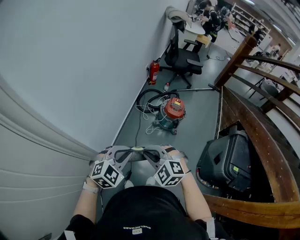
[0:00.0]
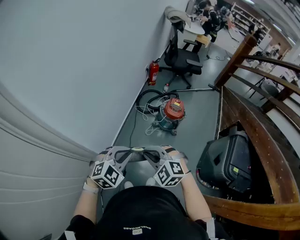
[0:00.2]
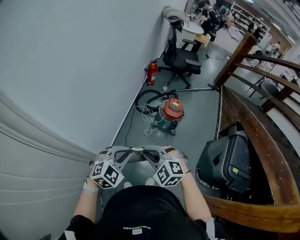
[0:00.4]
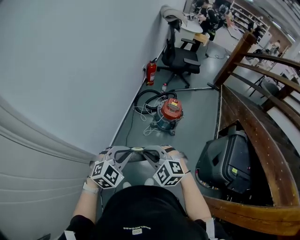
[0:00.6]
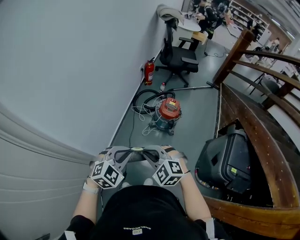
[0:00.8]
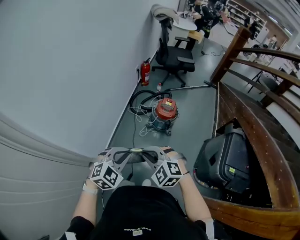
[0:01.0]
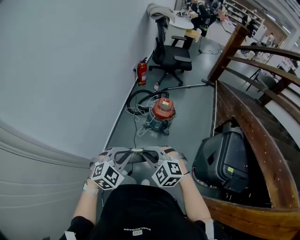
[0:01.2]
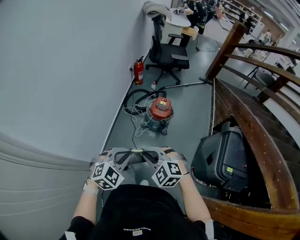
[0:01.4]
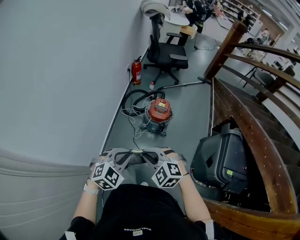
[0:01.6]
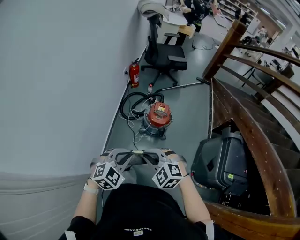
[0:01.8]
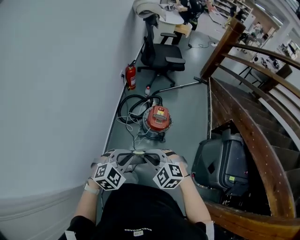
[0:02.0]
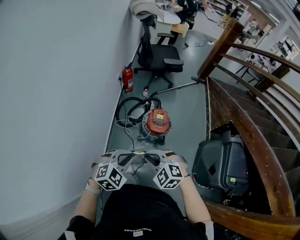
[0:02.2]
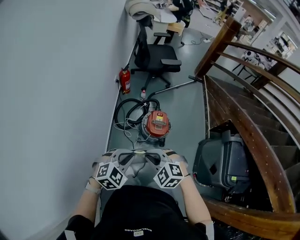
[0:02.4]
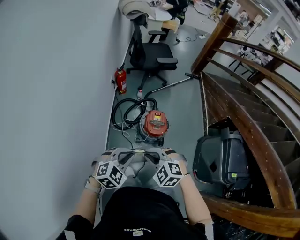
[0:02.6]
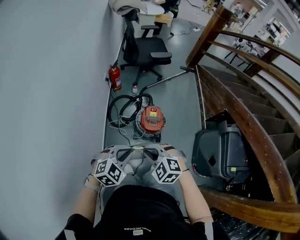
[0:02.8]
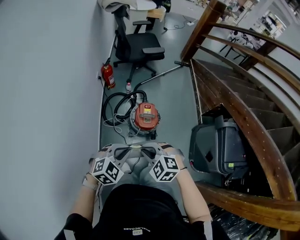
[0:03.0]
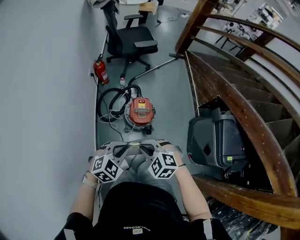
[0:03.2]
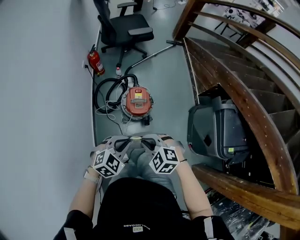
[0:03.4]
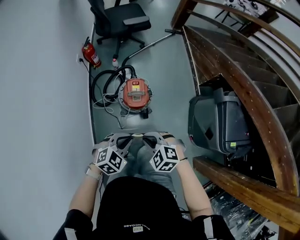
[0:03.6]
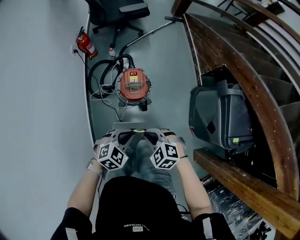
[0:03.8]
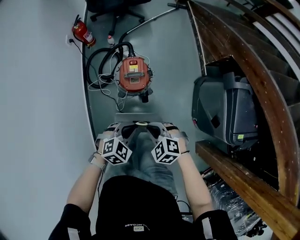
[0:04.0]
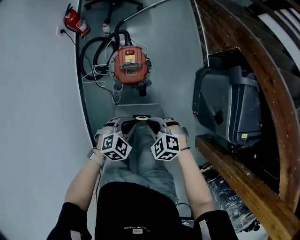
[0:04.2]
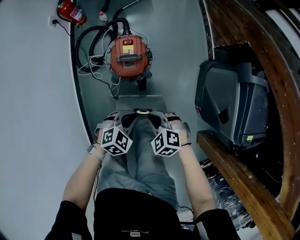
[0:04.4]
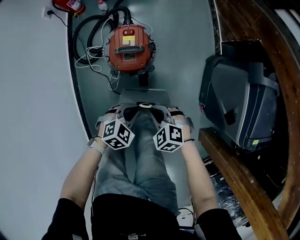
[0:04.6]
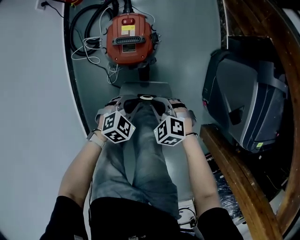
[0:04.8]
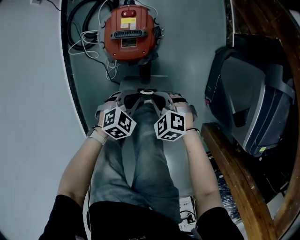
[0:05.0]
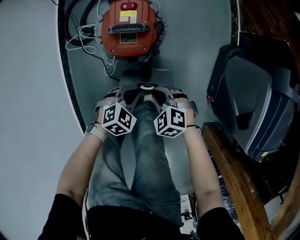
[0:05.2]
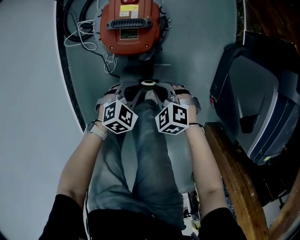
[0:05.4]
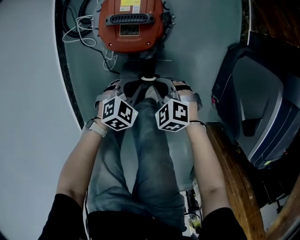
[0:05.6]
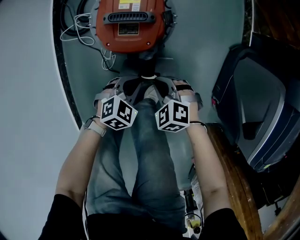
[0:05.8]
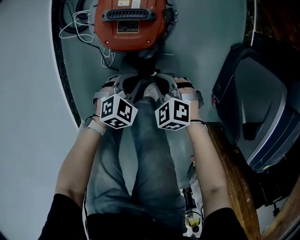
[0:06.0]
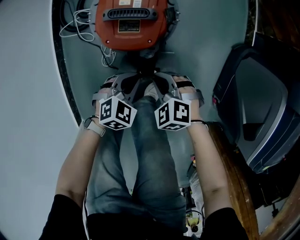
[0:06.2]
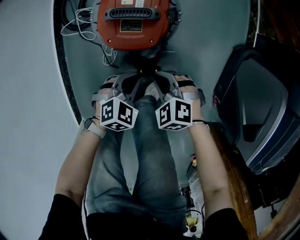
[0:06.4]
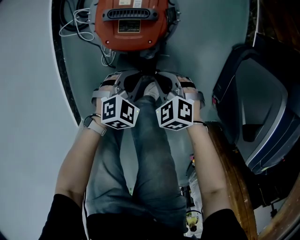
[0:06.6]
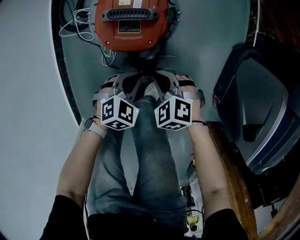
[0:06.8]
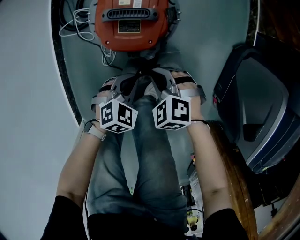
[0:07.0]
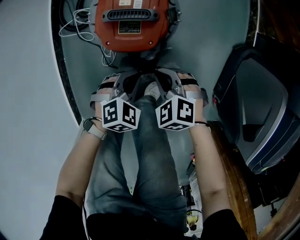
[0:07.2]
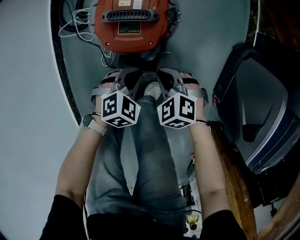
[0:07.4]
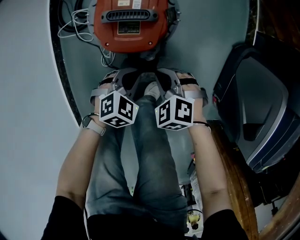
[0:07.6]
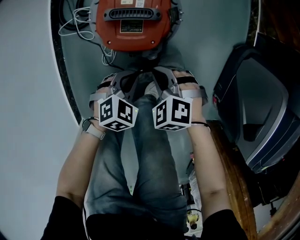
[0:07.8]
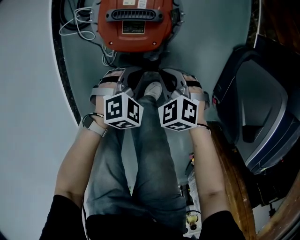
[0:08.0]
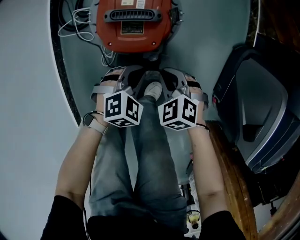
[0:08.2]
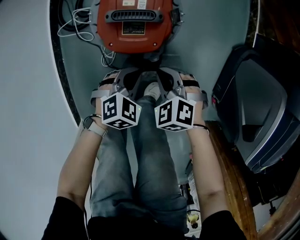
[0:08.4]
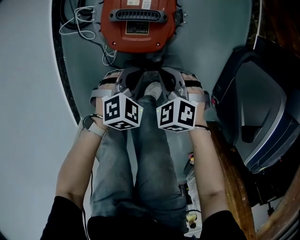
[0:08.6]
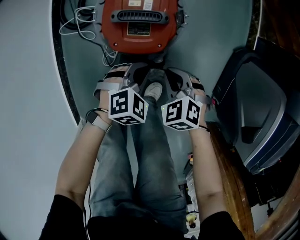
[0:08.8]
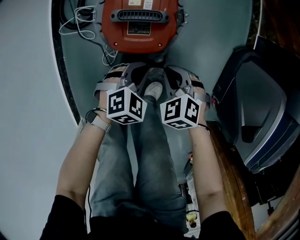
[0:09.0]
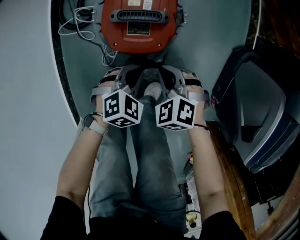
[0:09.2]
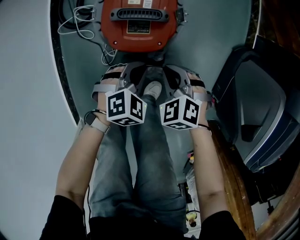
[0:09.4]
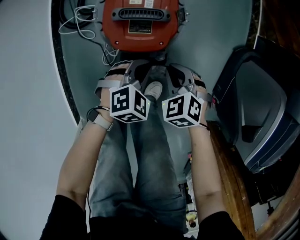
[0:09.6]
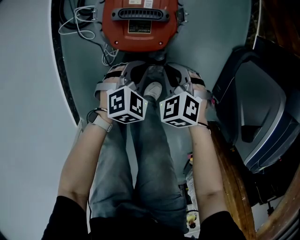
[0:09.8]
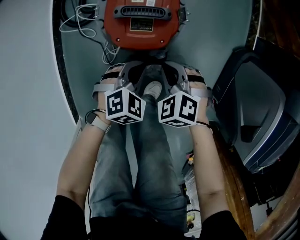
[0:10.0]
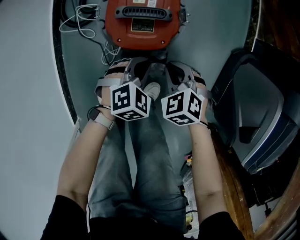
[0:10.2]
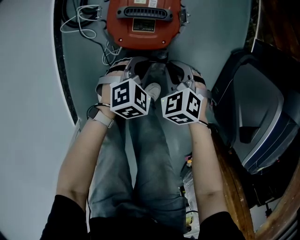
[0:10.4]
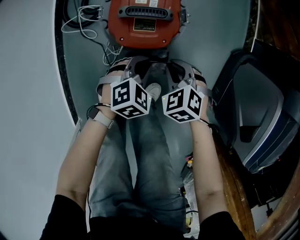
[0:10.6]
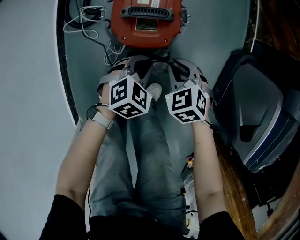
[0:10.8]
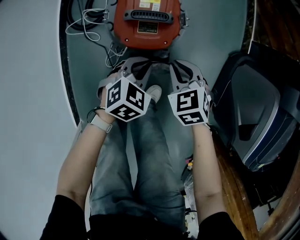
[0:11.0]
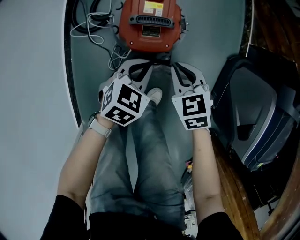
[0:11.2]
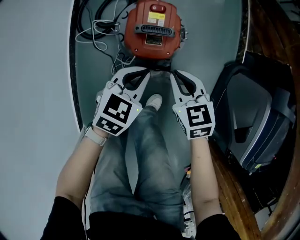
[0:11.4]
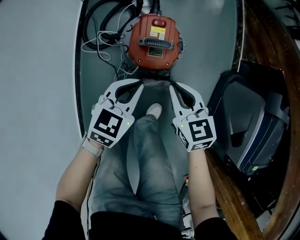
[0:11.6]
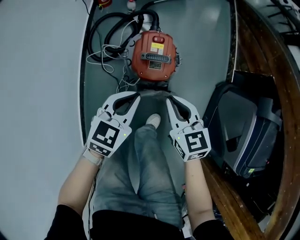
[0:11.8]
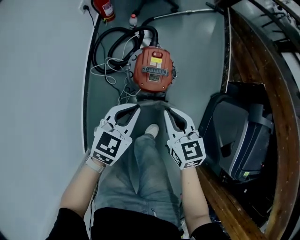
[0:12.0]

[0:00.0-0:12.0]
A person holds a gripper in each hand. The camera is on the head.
0:00.0 to 0:01.6: The grippers both shift to the right and forward by some 20 cm.
0:01.6 to 0:03.0: The two grippers go roughly 25 cm forward.
0:03.0 to 0:04.4: Both grippers travel together downward and to the right, approximately 40 cm. The right gripper turns by about 20 degrees.
0:04.4 to 0:06.0: Both grippers move downward, approximately 30 cm.
0:06.0 to 0:09.0: The grippers stay close to where they were, moving slightly.
0:09.0 to 0:10.4: There are only small adjustments of the grippers.
0:10.4 to 0:12.0: Both grippers move upward, roughly 35 cm. The left gripper swivels approximately 40 degrees. The right gripper points its fingers about 30 degrees further upward.

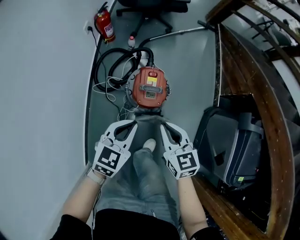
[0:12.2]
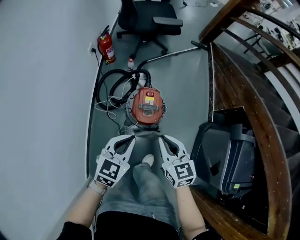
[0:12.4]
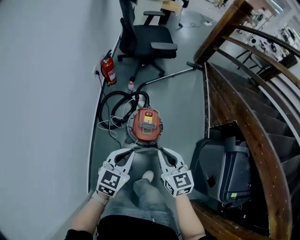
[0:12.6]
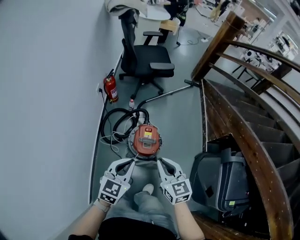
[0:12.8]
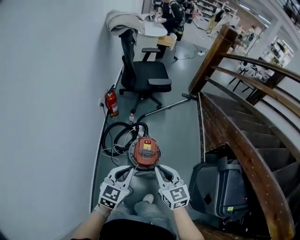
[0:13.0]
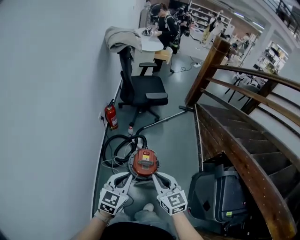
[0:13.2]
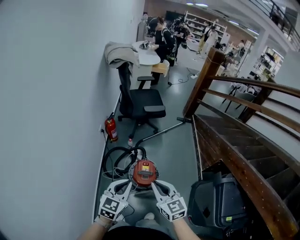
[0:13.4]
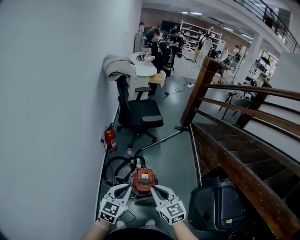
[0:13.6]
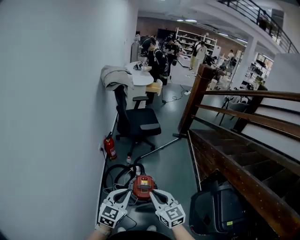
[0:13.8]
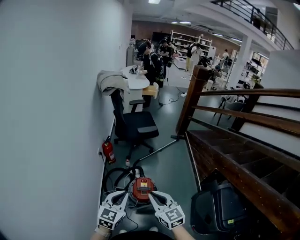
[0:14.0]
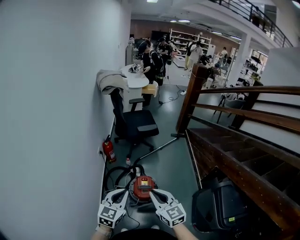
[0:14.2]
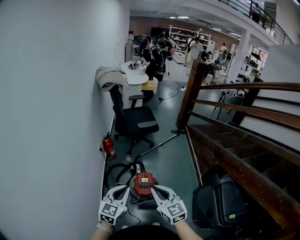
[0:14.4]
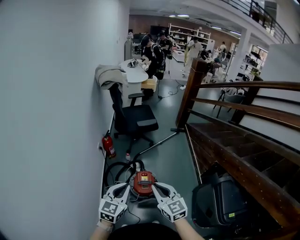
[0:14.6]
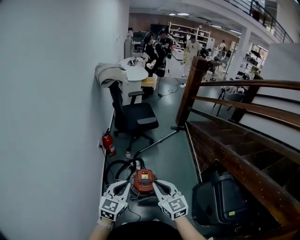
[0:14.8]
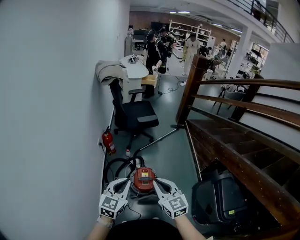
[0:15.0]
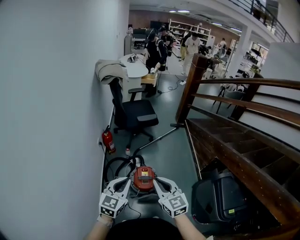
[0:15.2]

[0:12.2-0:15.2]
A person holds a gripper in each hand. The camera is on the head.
0:12.2 to 0:13.8: Both grippers move upward, roughly 40 cm. The right gripper rotates some 20 degrees.
0:13.8 to 0:15.2: There are only small adjustments of the grippers.

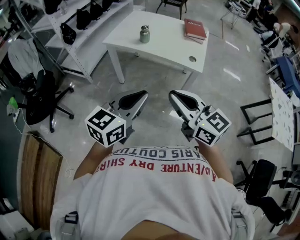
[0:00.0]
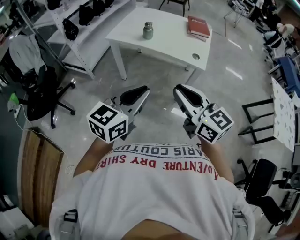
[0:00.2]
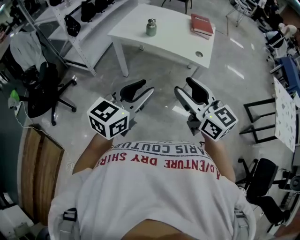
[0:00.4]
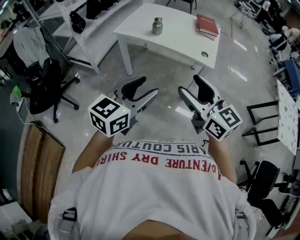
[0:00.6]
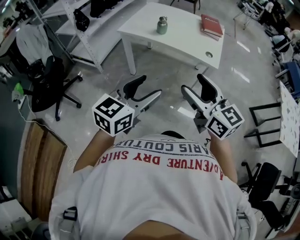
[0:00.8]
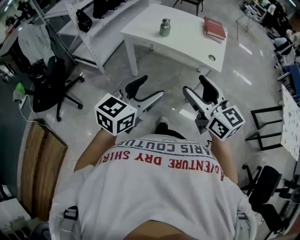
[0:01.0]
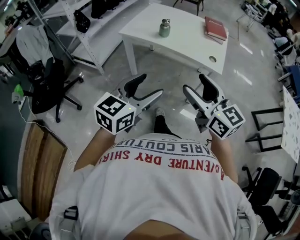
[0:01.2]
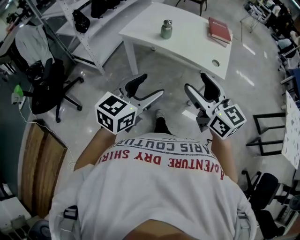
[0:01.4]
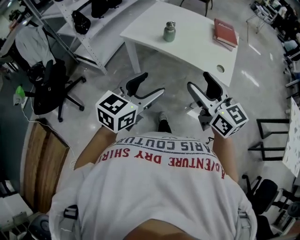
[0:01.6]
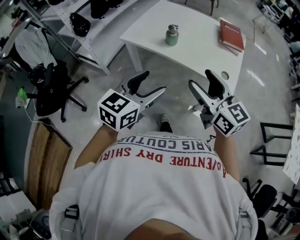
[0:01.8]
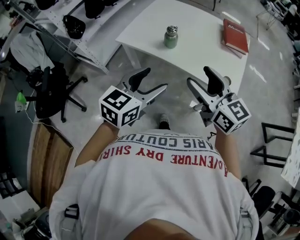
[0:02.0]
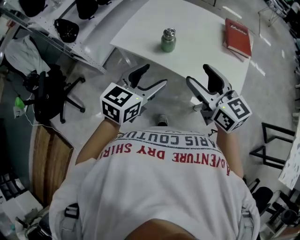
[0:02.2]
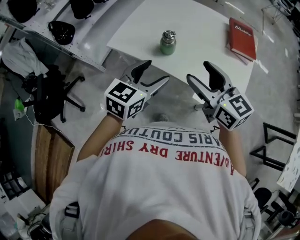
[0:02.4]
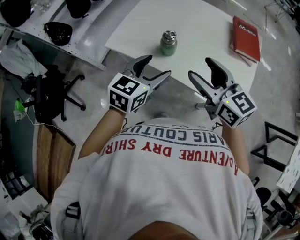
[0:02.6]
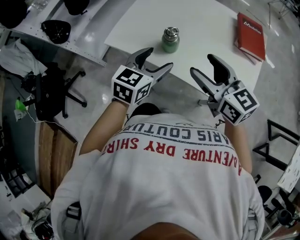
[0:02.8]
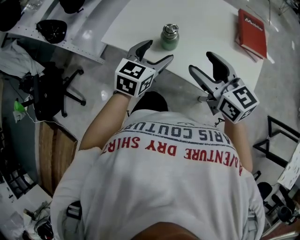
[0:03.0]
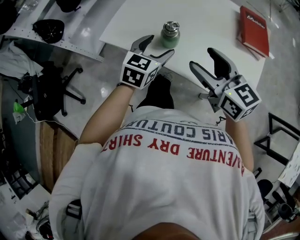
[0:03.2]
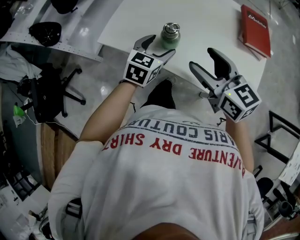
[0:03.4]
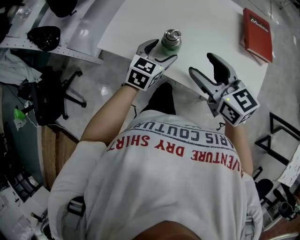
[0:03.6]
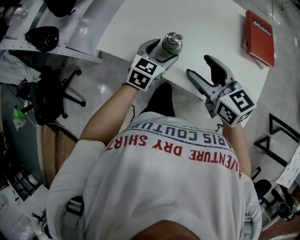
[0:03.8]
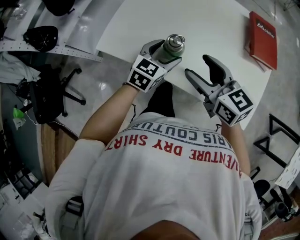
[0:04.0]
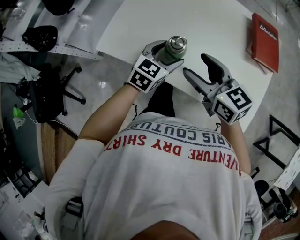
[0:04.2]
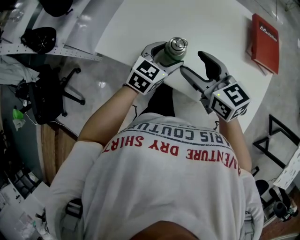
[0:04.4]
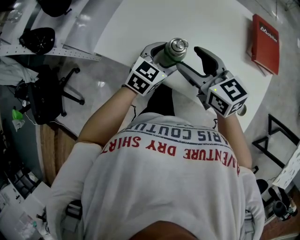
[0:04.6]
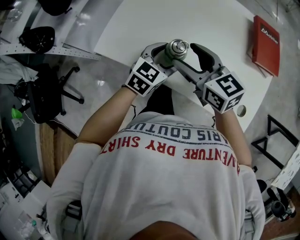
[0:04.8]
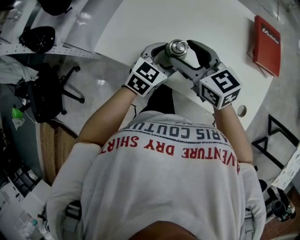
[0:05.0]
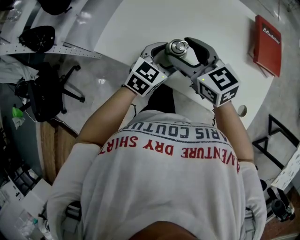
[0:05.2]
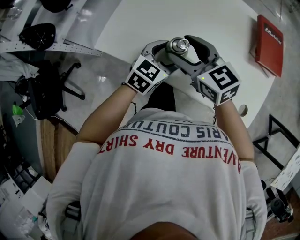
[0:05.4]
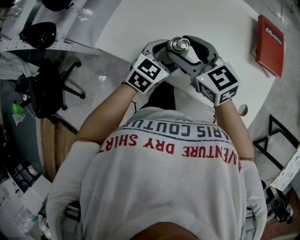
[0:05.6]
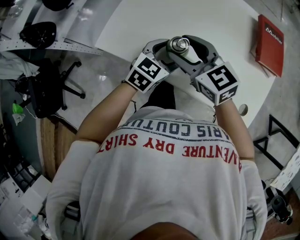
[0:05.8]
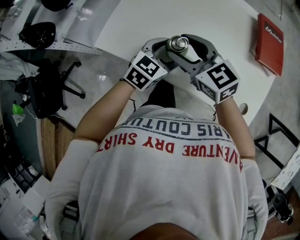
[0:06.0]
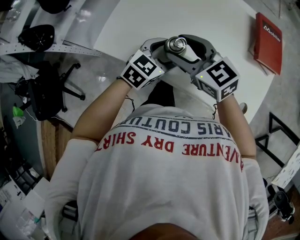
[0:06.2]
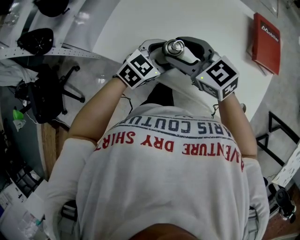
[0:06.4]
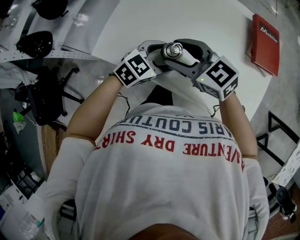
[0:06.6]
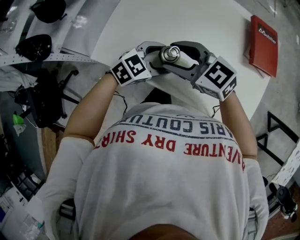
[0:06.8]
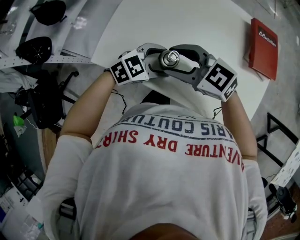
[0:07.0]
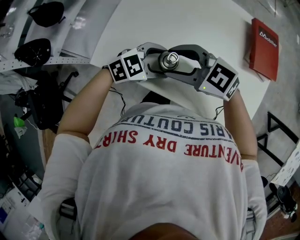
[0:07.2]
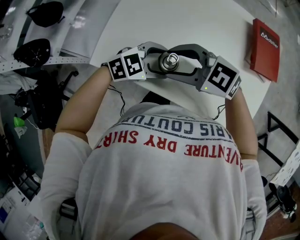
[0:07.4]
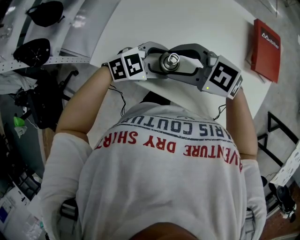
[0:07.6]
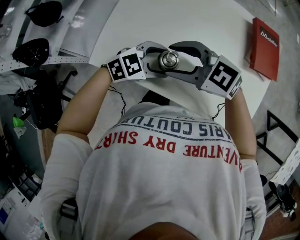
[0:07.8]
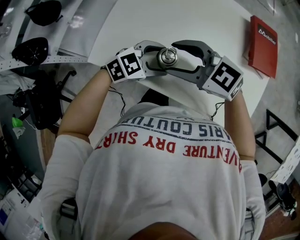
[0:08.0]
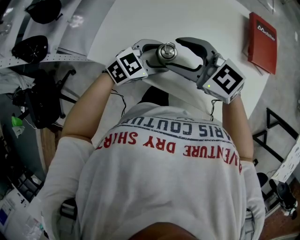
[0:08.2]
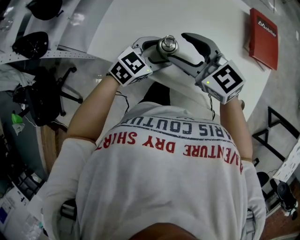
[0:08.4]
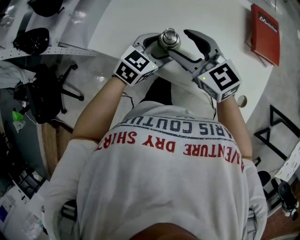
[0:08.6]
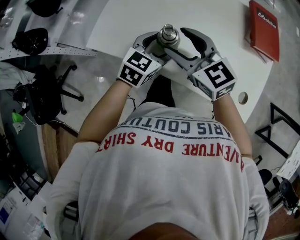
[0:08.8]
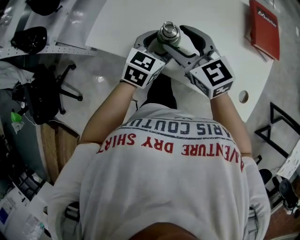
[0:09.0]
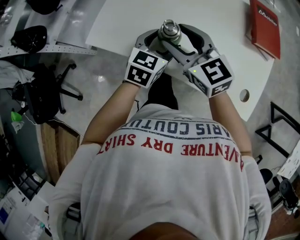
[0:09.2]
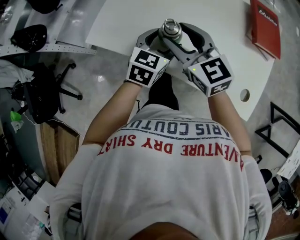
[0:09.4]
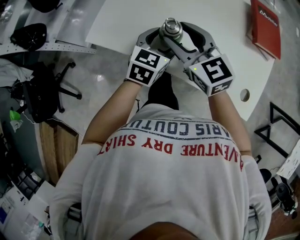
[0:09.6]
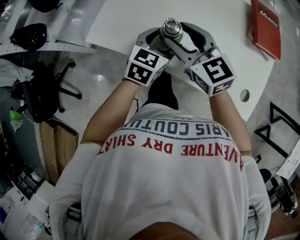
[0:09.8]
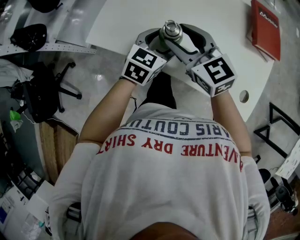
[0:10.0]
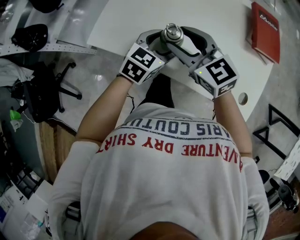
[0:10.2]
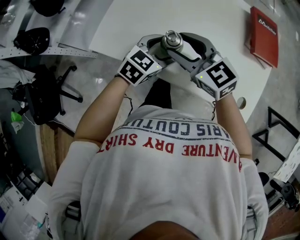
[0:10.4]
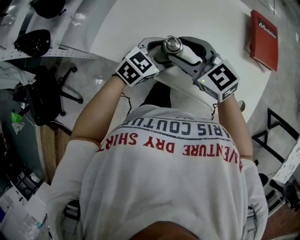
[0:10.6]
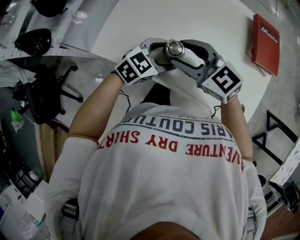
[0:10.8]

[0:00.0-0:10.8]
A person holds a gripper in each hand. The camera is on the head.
0:00.0 to 0:01.6: The left gripper moves forward and downward, some 15 cm, and opens up, while the right gripper goes about 15 cm forward, and opens up.
0:01.6 to 0:03.0: Both grippers travel together forward, some 35 cm.
0:03.0 to 0:04.6: The left gripper travels downward and forward by roughly 10 cm; the right gripper travels forward, downward and to the left by roughly 15 cm.
0:04.6 to 0:06.2: The grippers stay close to where they were, moving slightly.
0:06.2 to 0:07.8: The right gripper turns by approximately 20 degrees. Meanwhile the left gripper turns by about 30 degrees.
0:07.8 to 0:09.2: The left gripper rotates roughly 50 degrees. The right gripper rotates roughly 30 degrees.
0:09.2 to 0:10.8: The left gripper turns by some 30 degrees.
